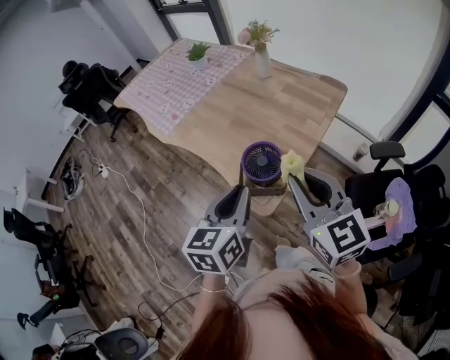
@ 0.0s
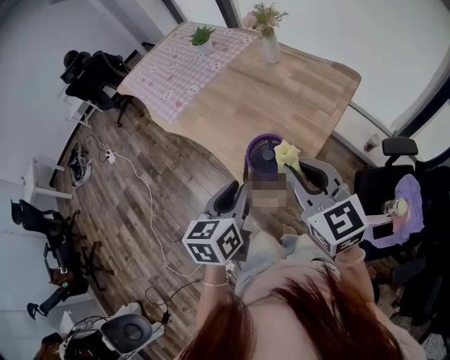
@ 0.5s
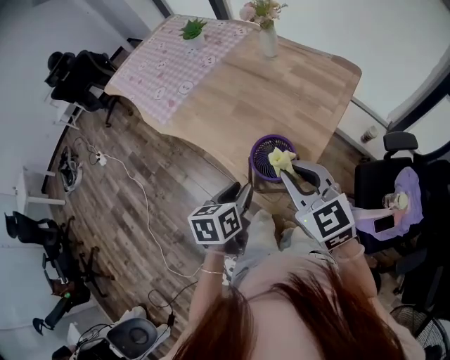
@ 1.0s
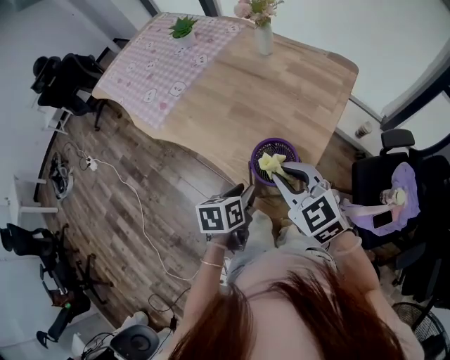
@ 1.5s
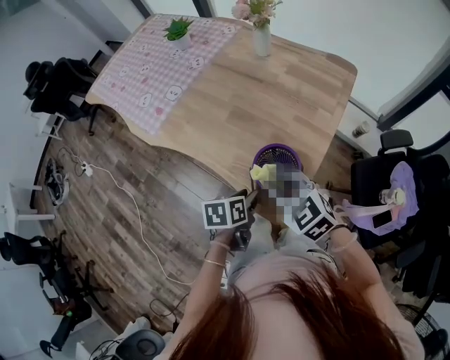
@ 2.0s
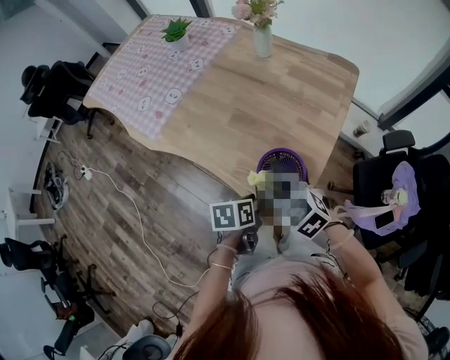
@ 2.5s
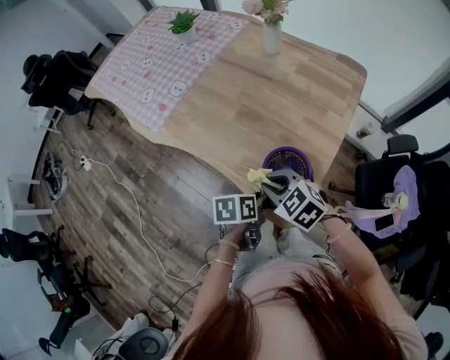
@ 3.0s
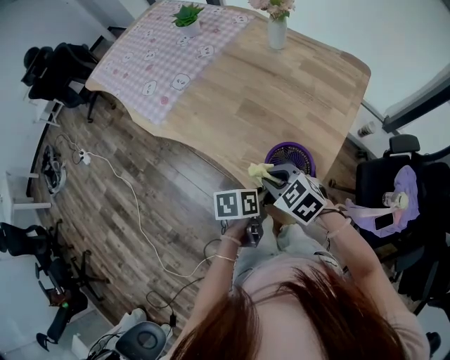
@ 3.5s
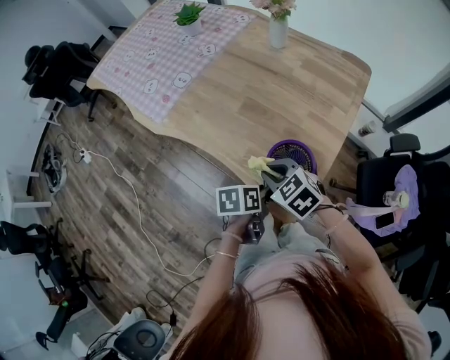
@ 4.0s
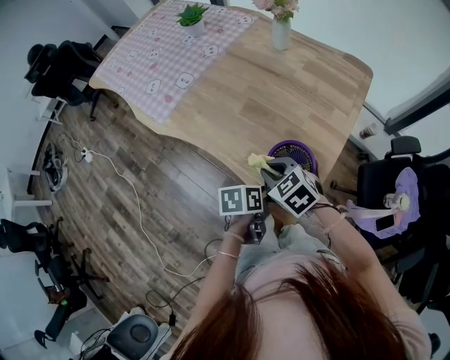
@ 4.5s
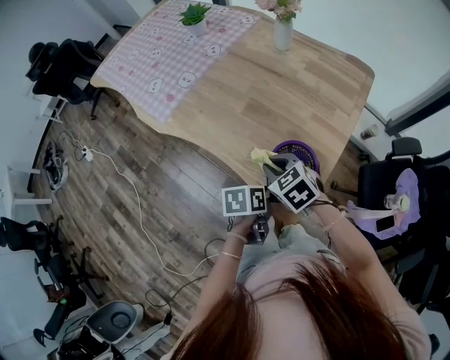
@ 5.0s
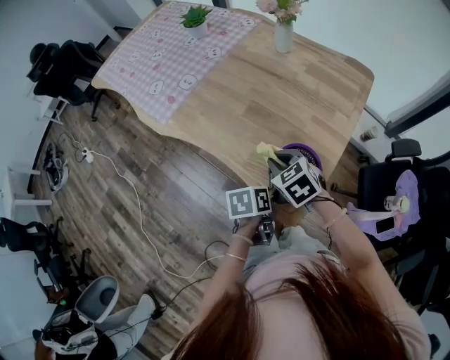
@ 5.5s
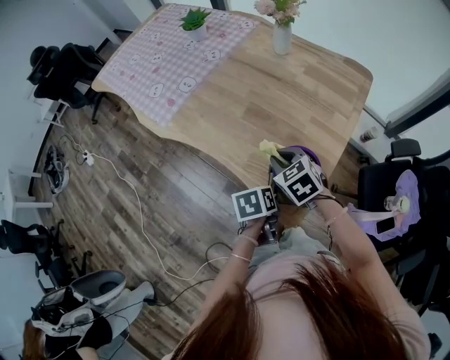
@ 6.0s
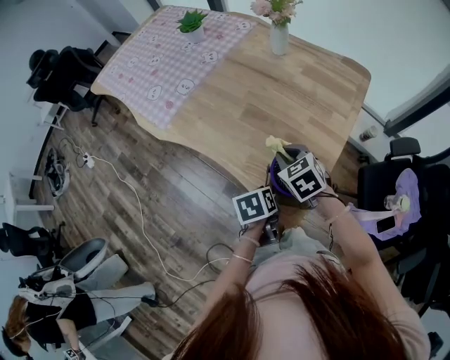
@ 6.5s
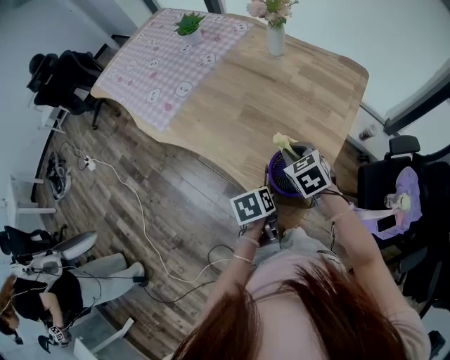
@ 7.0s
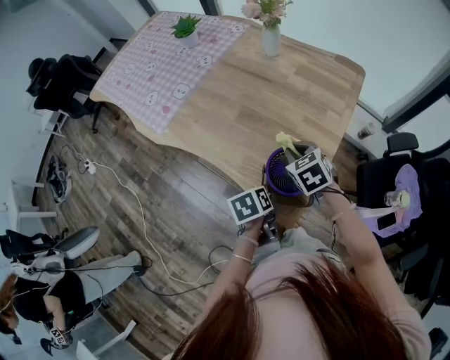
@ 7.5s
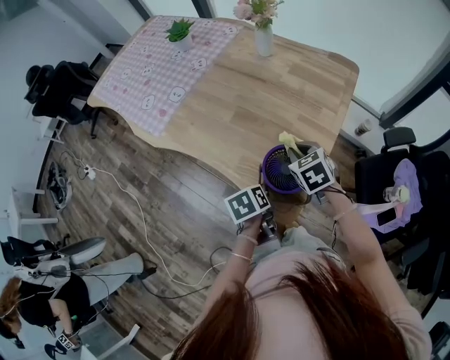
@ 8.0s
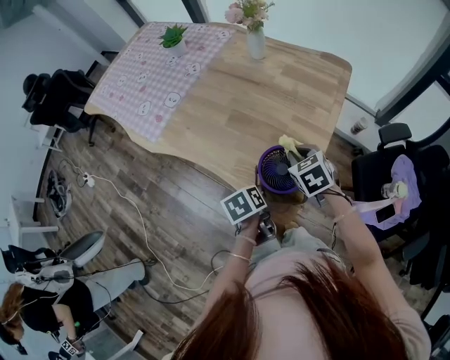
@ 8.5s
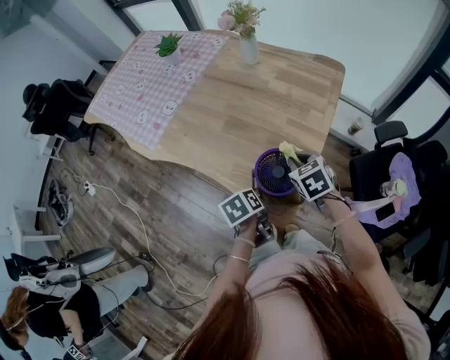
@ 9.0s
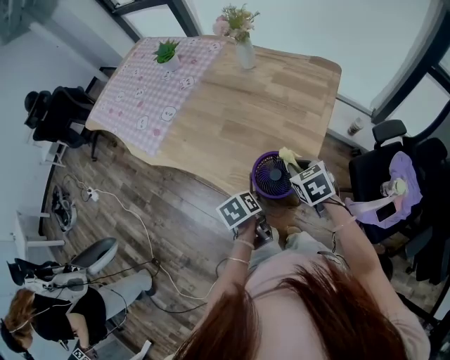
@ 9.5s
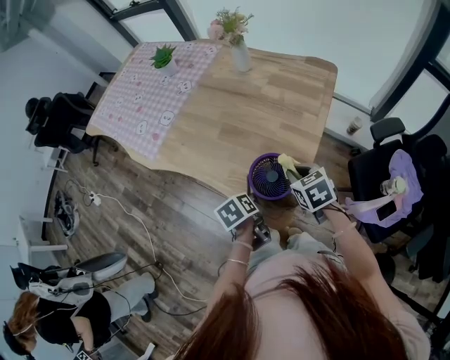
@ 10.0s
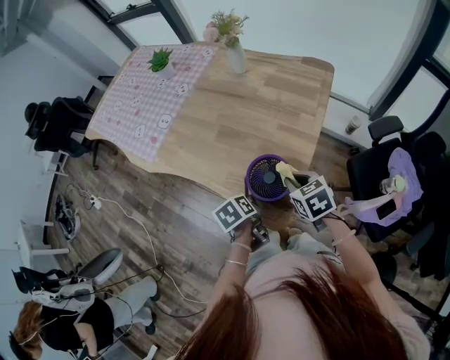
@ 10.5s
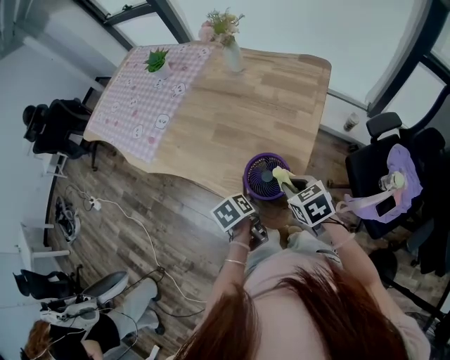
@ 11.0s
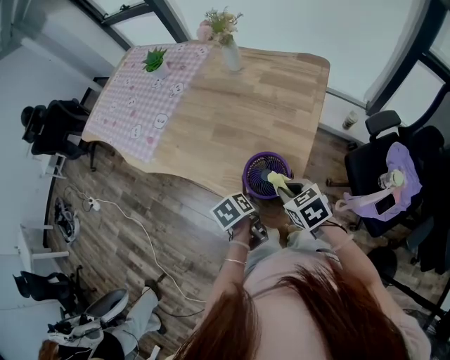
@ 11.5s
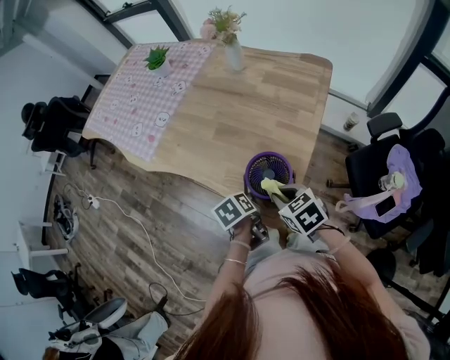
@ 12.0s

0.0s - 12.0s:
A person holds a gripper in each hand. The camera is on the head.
0.0s - 2.0s: The left gripper travels downward and forward by some 25 cm, changes its angle by roughly 40 degrees, and opens its fingers, while the right gripper is displaced downward, forward and to the left by some 25 cm, and changes its angle by some 30 degrees.
2.0s - 4.0s: The right gripper shifts approximately 10 cm downward.
4.0s - 6.0s: The right gripper heads forward, covering about 5 cm.
6.0s - 8.0s: The right gripper travels to the right by about 10 cm.
8.0s - 10.0s: The right gripper moves backward, about 5 cm.
10.0s - 12.0s: The right gripper goes approximately 10 cm to the left and backward.

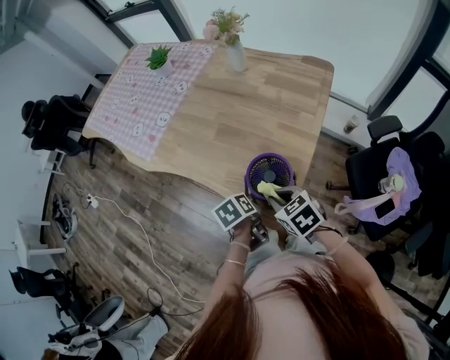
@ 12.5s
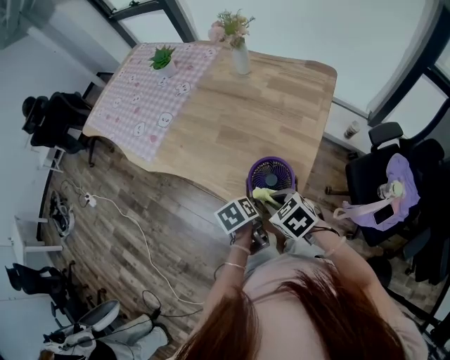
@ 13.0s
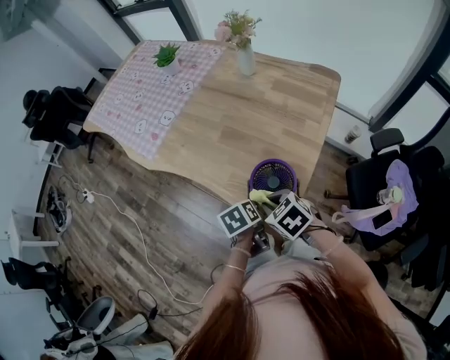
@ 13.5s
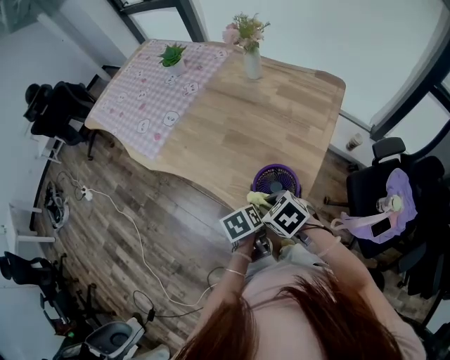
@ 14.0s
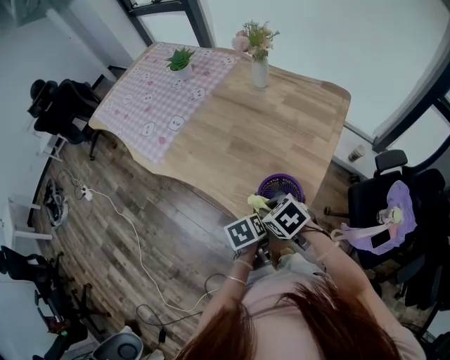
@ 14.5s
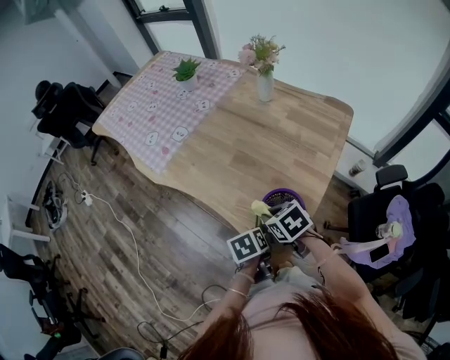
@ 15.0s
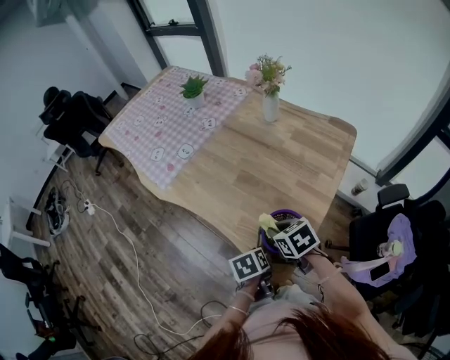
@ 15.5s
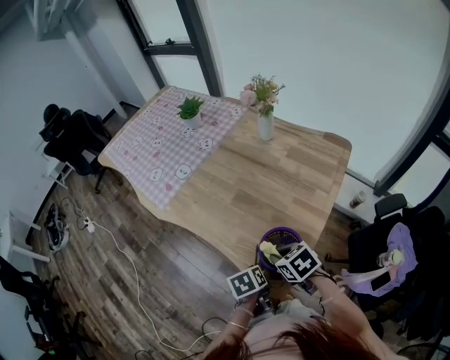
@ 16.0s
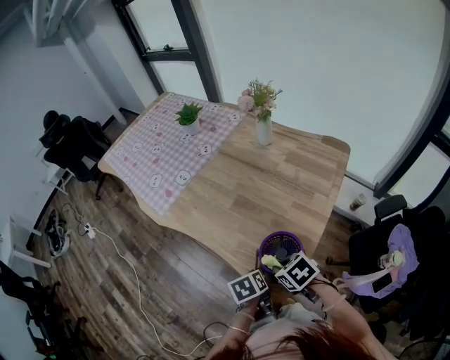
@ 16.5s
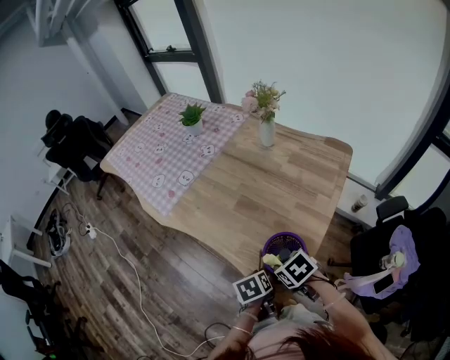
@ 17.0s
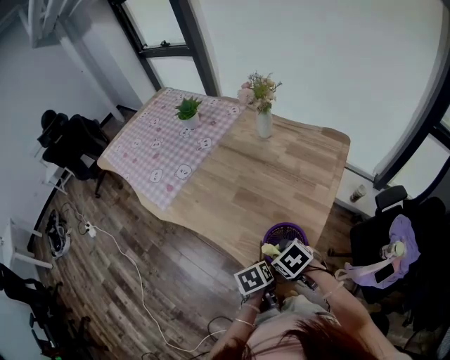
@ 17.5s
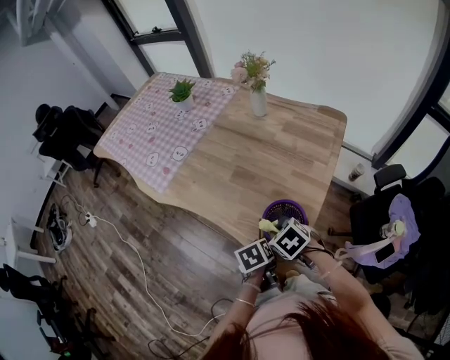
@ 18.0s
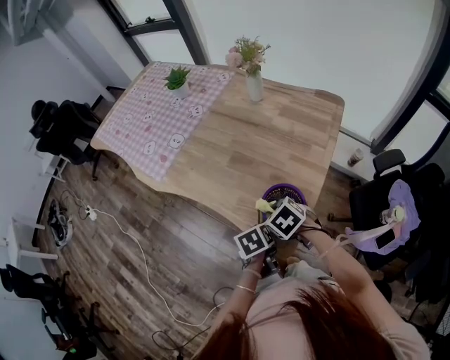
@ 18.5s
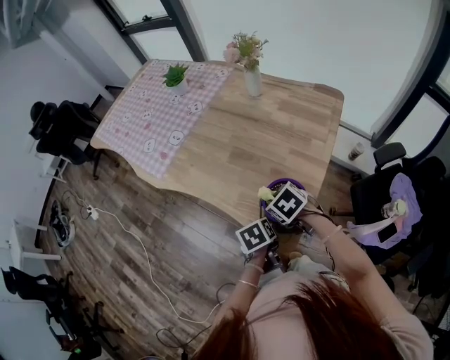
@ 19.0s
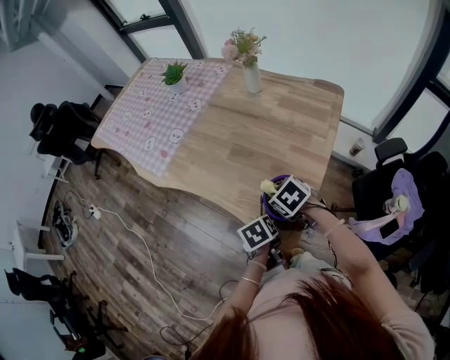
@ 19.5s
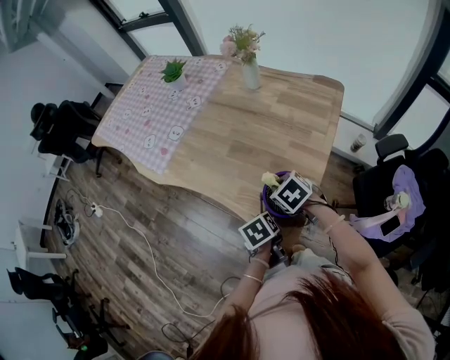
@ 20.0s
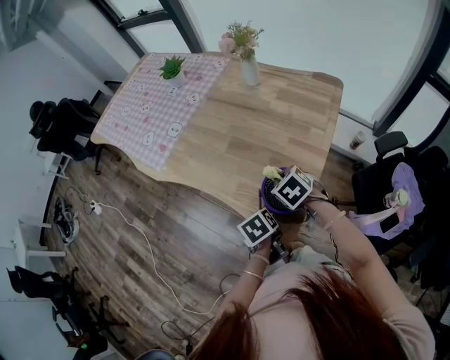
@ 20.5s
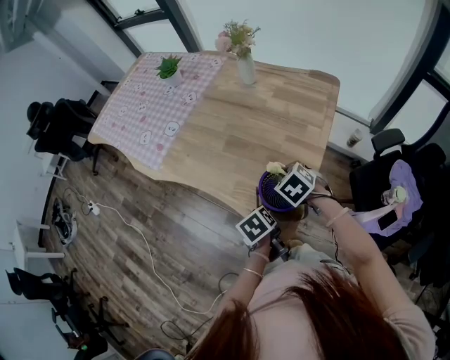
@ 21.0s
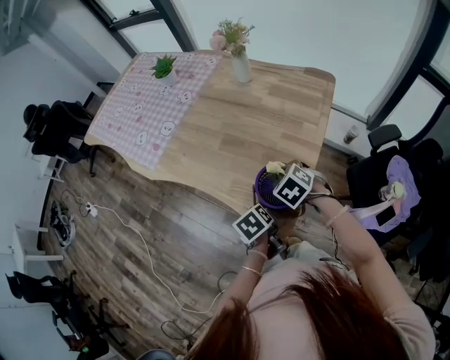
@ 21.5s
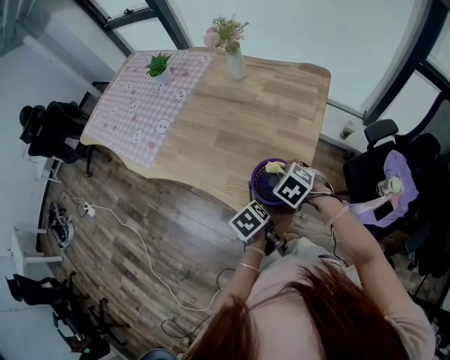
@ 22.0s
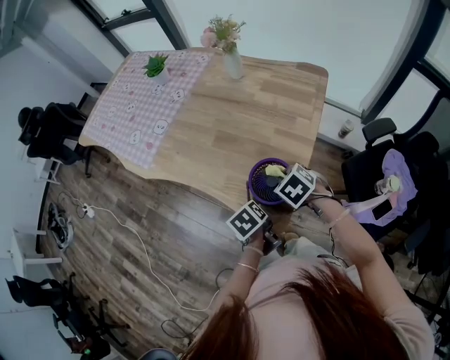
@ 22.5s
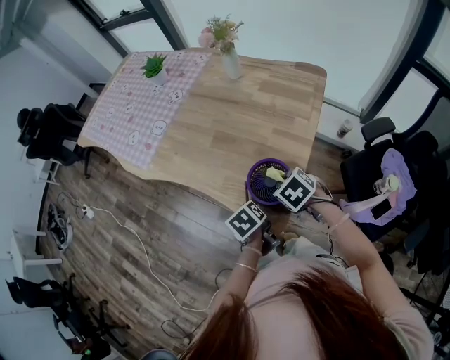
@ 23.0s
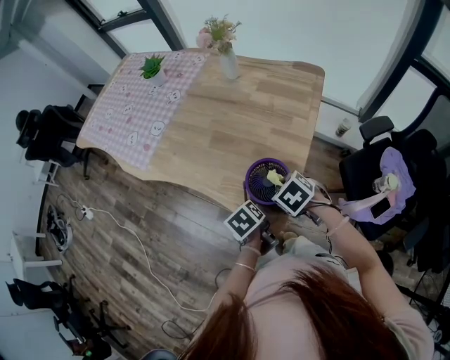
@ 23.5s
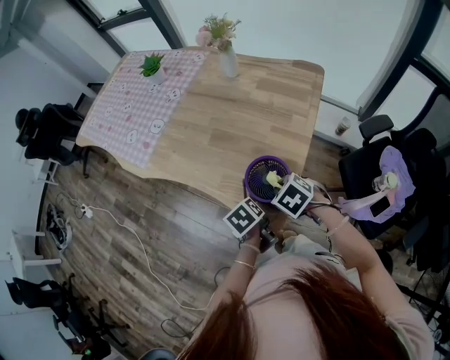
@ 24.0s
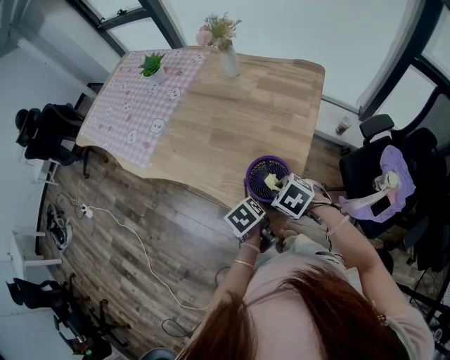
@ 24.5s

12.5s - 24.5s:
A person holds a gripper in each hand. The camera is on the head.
12.5s - 14.5s: The right gripper moves some 5 cm.
14.5s - 18.5s: The grippers move only a little.
18.5s - 20.5s: The right gripper travels to the right by approximately 5 cm.
20.5s - 22.5s: The right gripper shifts by roughly 5 cm.
22.5s - 24.5s: The right gripper moves some 5 cm.

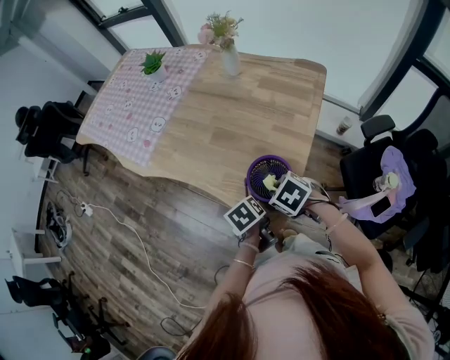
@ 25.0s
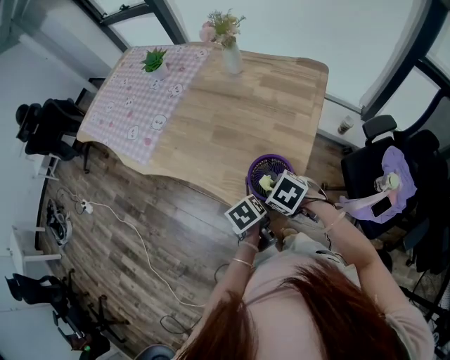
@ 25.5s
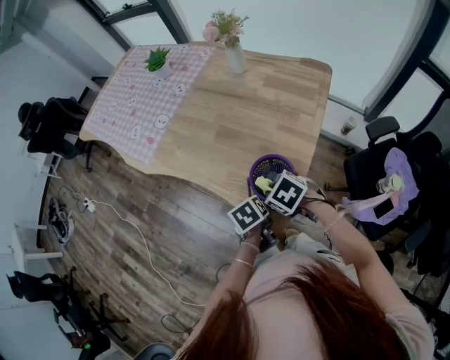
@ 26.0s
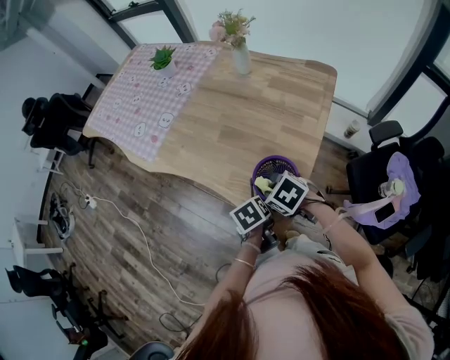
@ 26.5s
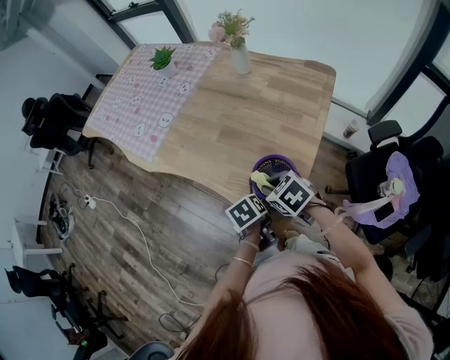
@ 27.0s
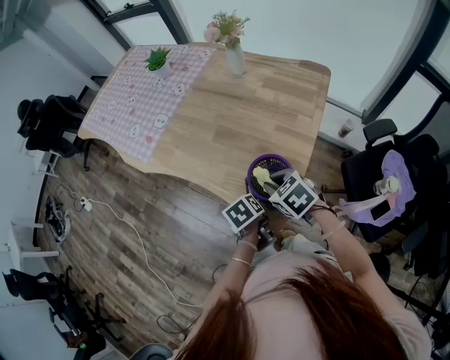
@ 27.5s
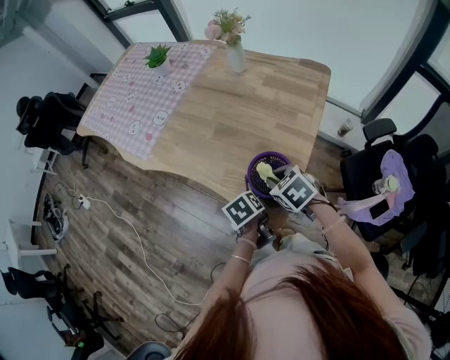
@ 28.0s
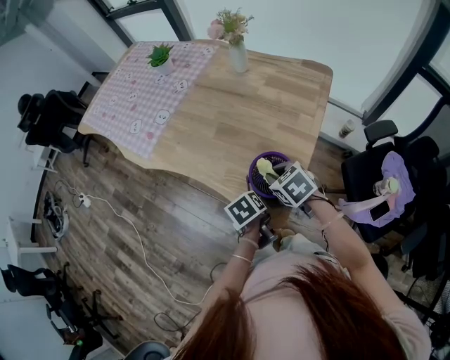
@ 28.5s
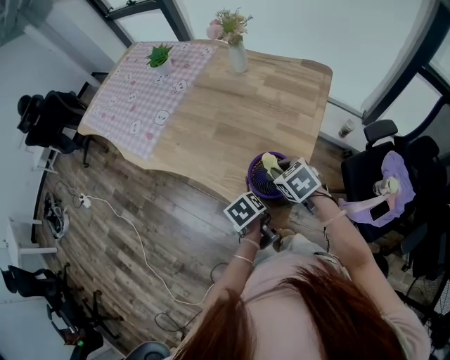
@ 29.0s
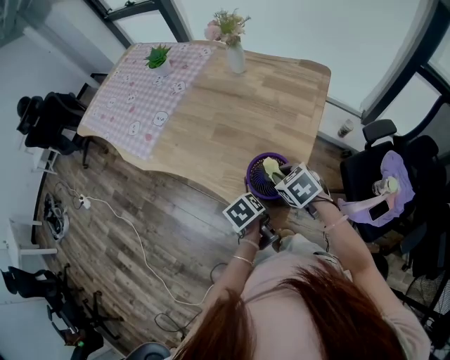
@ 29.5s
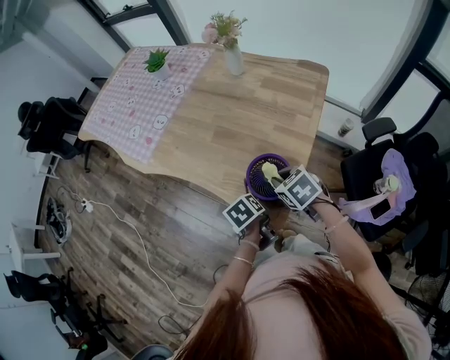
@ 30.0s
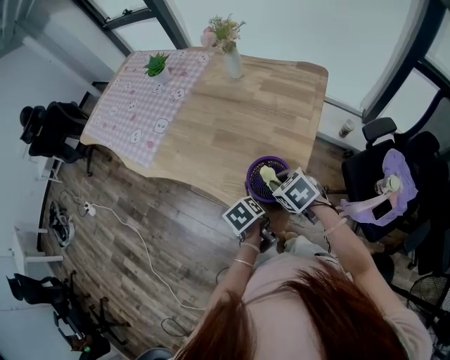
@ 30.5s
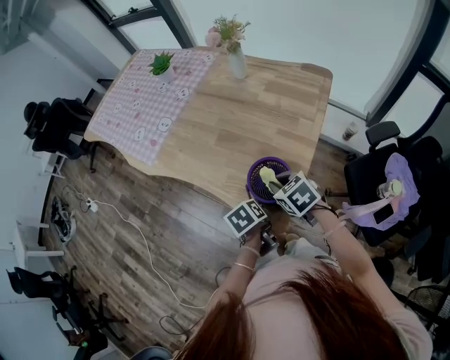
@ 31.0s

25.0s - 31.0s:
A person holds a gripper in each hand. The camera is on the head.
25.0s - 27.0s: The grippers stay close to where they were, moving slightly.
27.0s - 29.0s: The right gripper shifts about 5 cm to the right.
29.0s - 31.0s: The grippers stay close to where they were, moving slightly.
